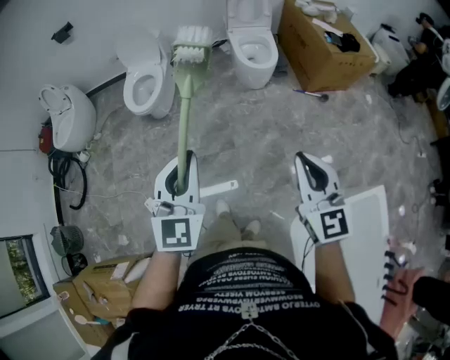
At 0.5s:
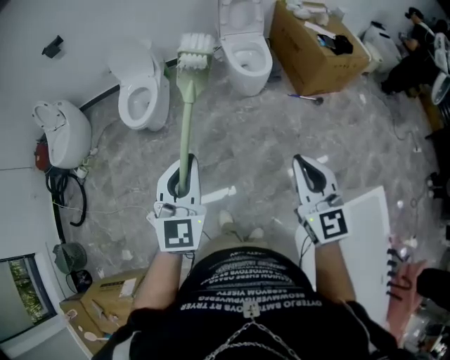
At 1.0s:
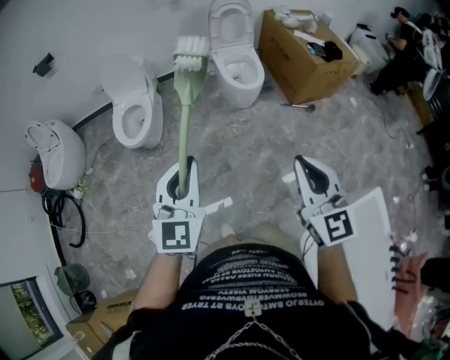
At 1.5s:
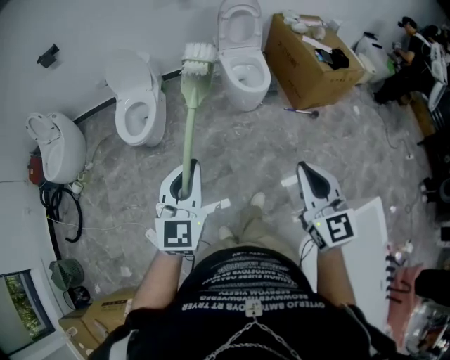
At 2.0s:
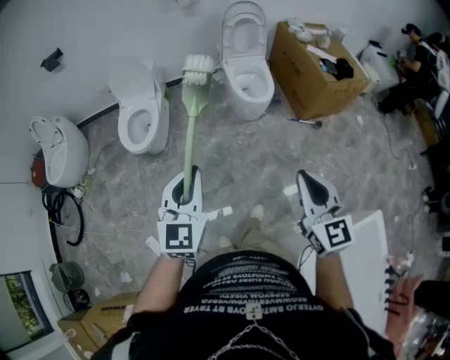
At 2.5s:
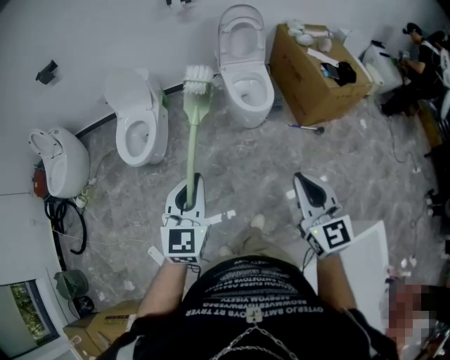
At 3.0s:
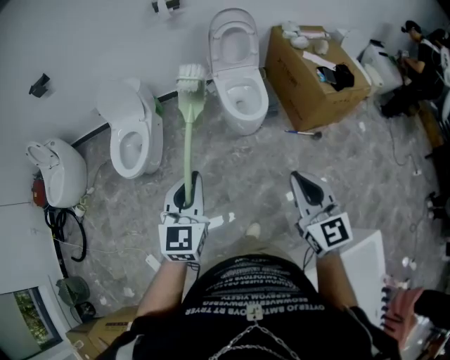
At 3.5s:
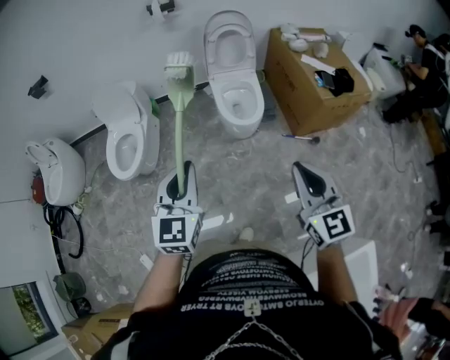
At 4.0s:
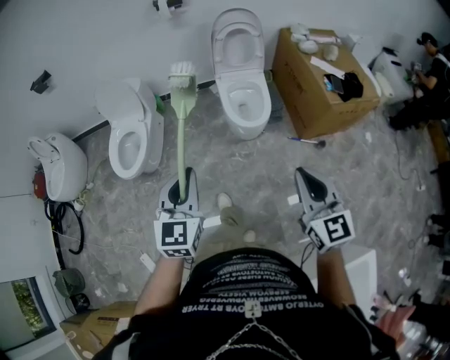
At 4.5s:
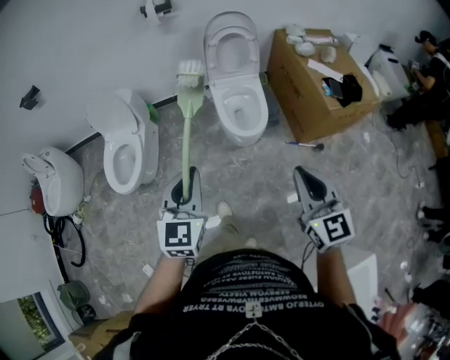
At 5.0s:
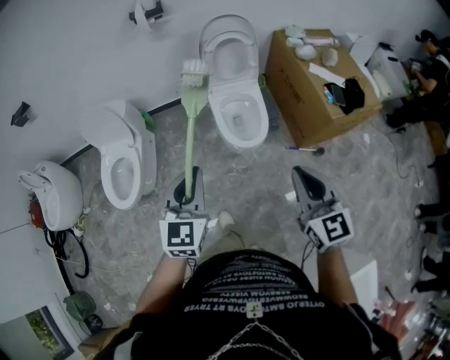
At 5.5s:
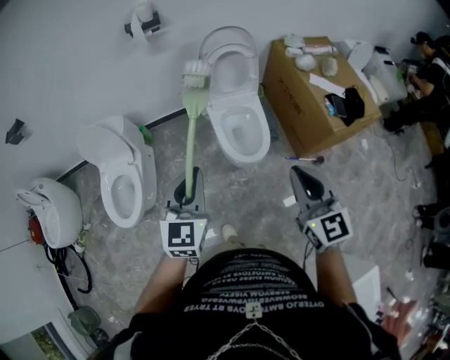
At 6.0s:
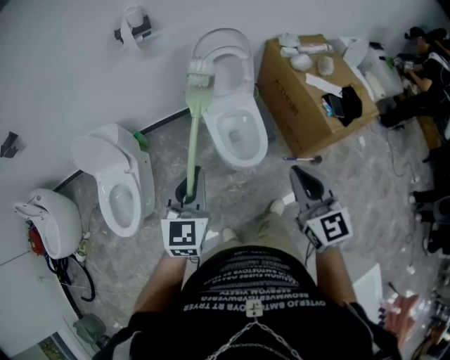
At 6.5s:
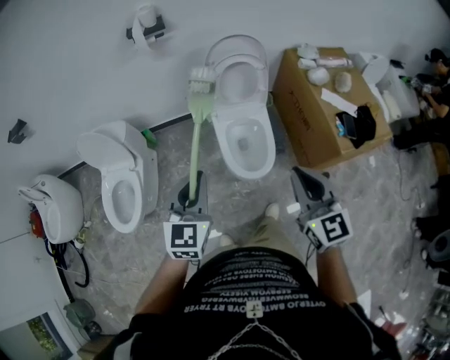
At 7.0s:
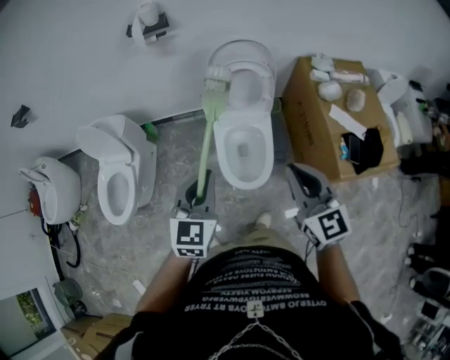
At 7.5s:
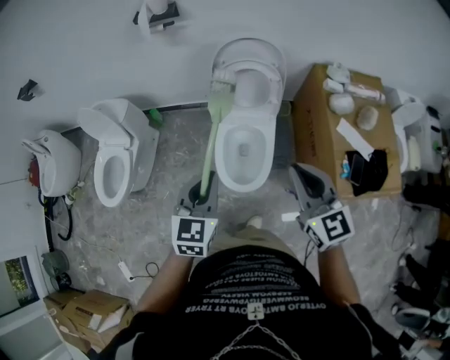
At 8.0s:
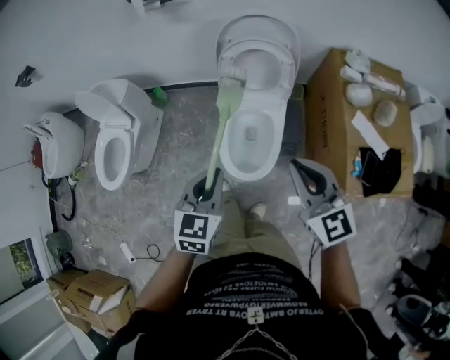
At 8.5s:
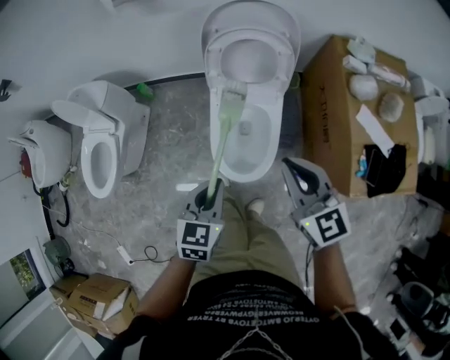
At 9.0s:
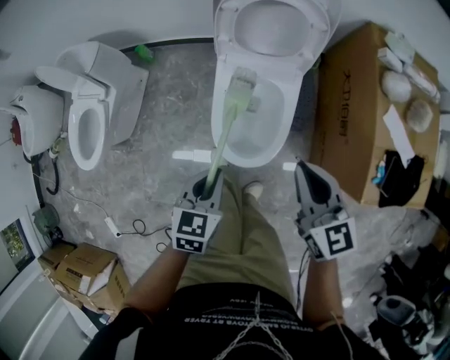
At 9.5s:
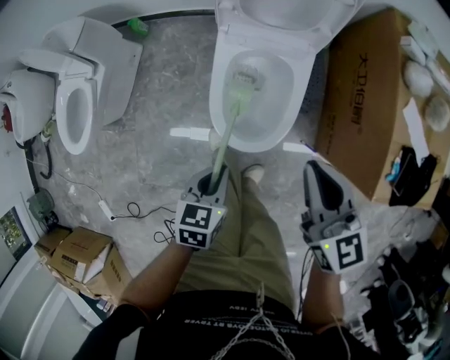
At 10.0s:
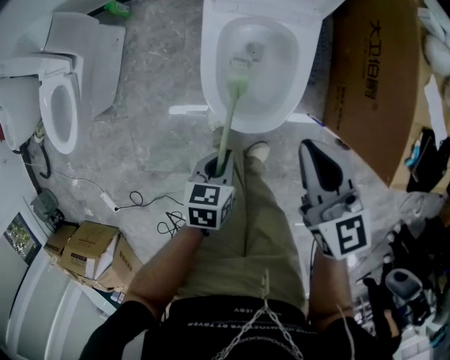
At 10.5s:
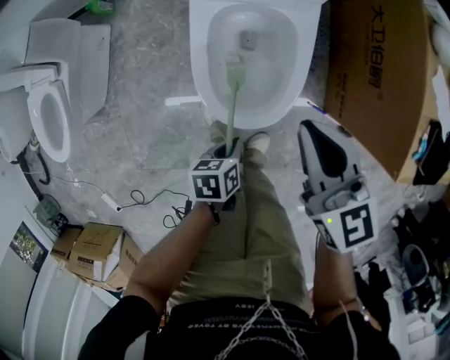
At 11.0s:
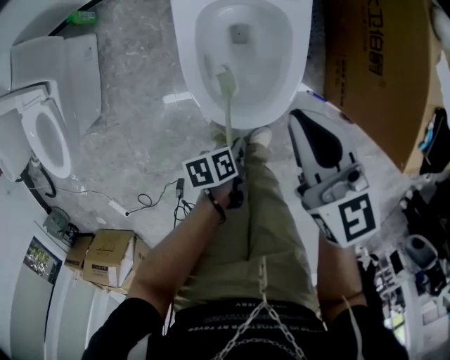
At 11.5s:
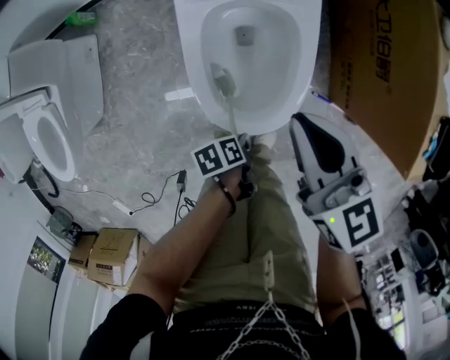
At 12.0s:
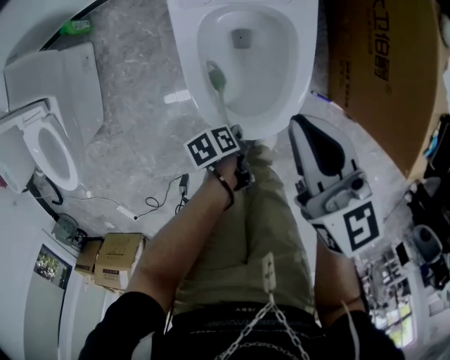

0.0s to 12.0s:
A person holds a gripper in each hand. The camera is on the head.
0.0s to 2.0s: The grippers both shift forward by about 15 cm.
2.0s to 4.0s: The grippers both shift forward and to the right by roughly 30 cm.
4.0s to 6.0s: The grippers both shift forward by about 30 cm.
6.0s to 8.0s: The left gripper heads to the right, forward and downward, covering approximately 25 cm, and rotates roughly 30 degrees, while the right gripper shifts approximately 30 cm forward and to the right, and changes its angle by some 30 degrees.
8.0s to 10.0s: The two grippers go about 35 cm downward. The left gripper swivels roughly 40 degrees. The right gripper swivels some 30 degrees.
10.0s to 12.0s: The left gripper is displaced downward by approximately 15 cm, and rolls counterclockwise, seen from behind, by approximately 40 degrees; the right gripper travels forward, to the left and downward by roughly 10 cm.

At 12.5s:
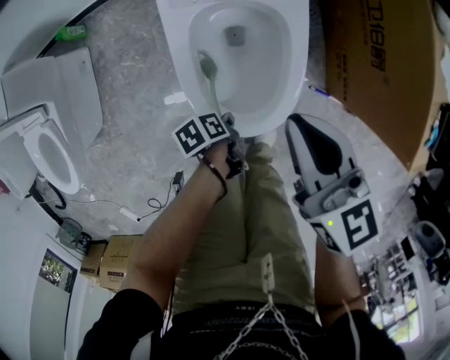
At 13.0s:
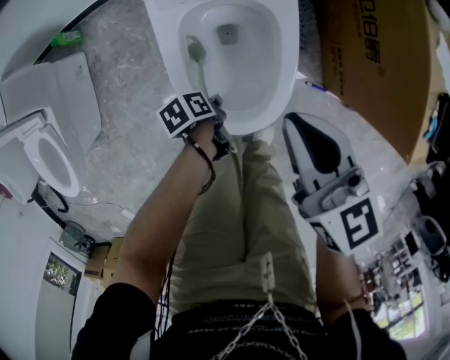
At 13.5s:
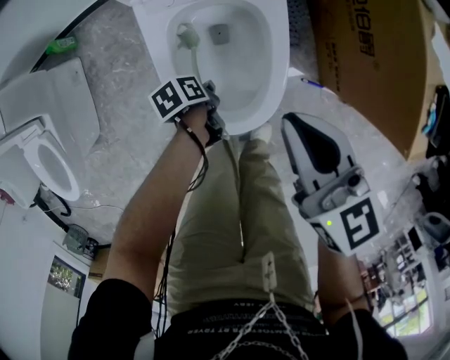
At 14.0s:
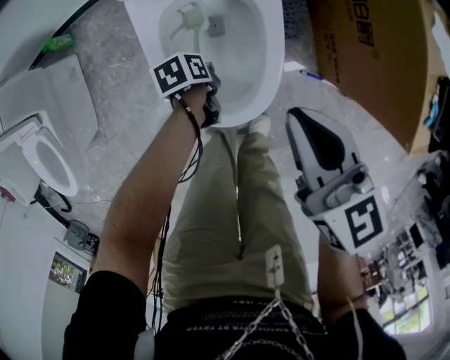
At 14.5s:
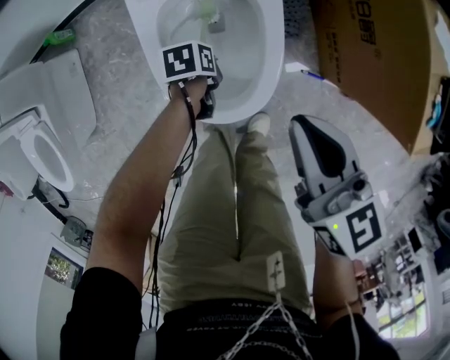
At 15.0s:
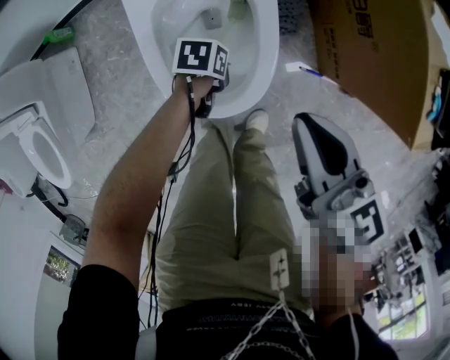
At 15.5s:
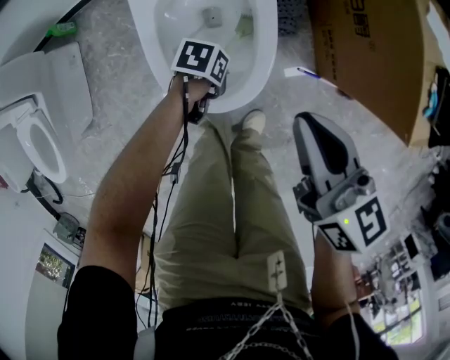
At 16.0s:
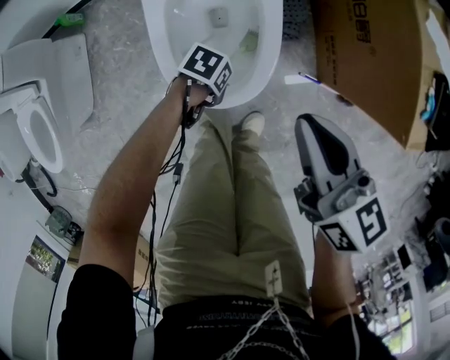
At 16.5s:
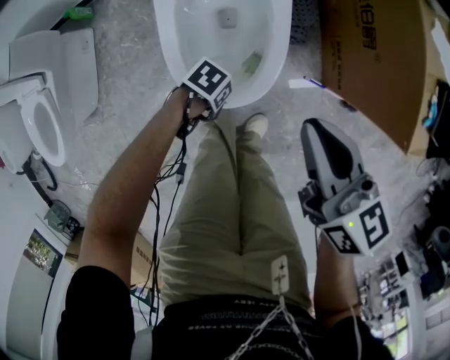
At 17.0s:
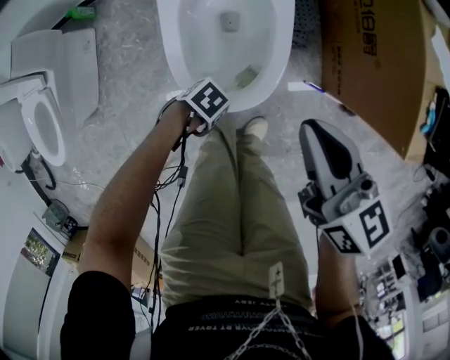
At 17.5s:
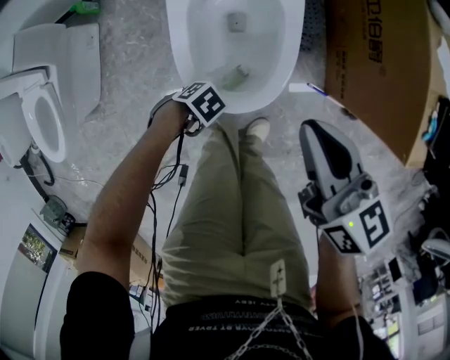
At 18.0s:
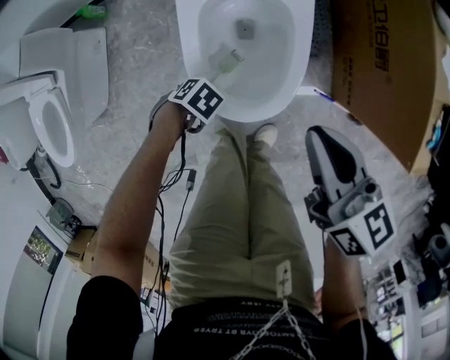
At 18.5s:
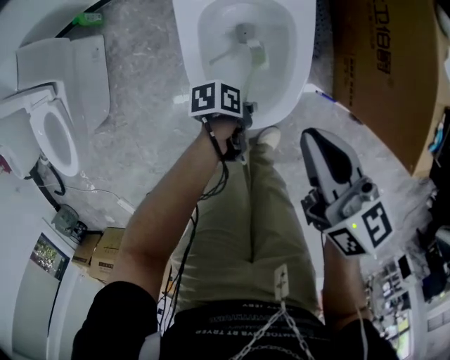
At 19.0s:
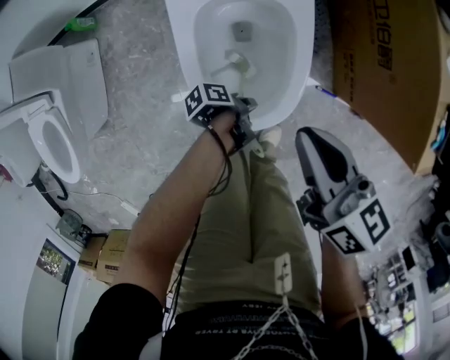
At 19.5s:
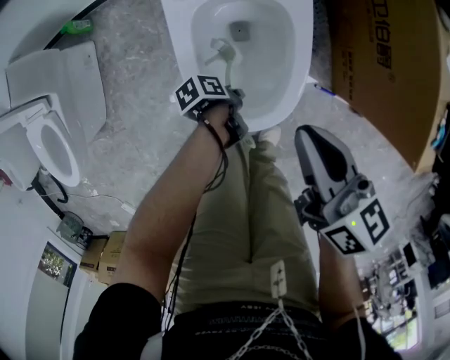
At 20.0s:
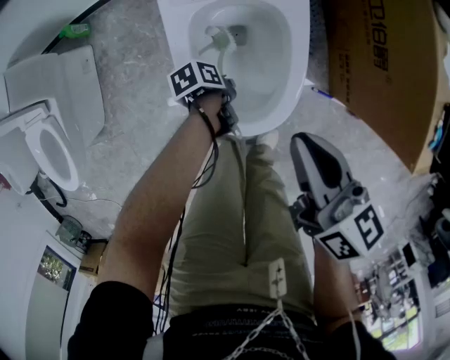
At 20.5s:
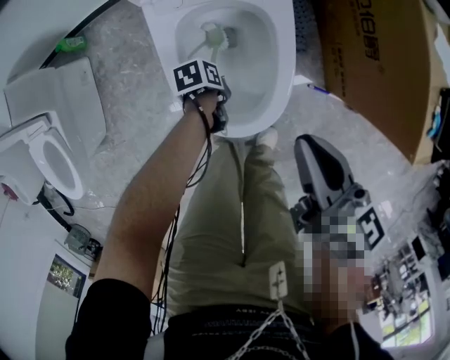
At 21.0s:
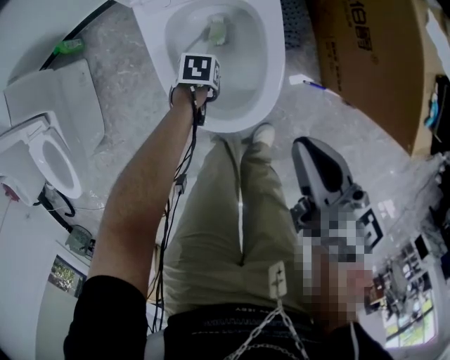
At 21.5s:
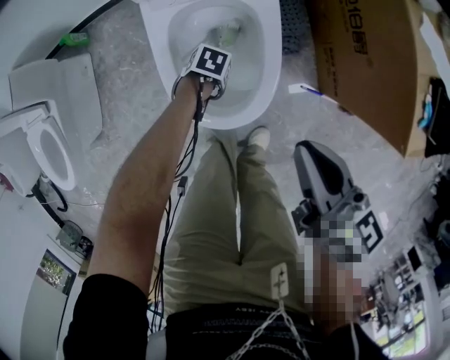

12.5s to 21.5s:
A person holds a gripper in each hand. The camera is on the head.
12.5s to 14.5s: The right gripper shifts approximately 10 cm to the right. The left gripper shifts roughly 10 cm forward, and swivels roughly 30 degrees.
14.5s to 17.0s: The right gripper ends up some 5 cm from where it was. Meanwhile the left gripper ends up roughly 20 cm from where it was, and rotates roughly 50 degrees.
17.0s to 19.5s: The right gripper changes place by some 10 cm, while the left gripper ends up about 10 cm from where it was, and twists roughly 70 degrees counterclockwise, seen from behind.
19.5s to 21.5s: The right gripper changes place by about 10 cm; the left gripper rotates around the line of its fingers by roughly 60 degrees, clockwise from behind.

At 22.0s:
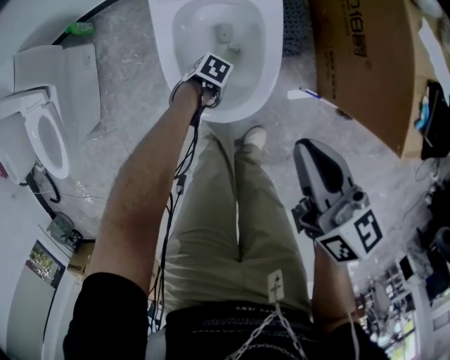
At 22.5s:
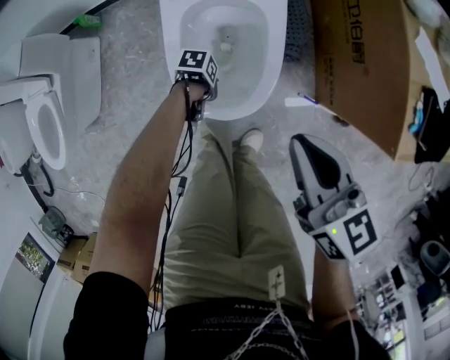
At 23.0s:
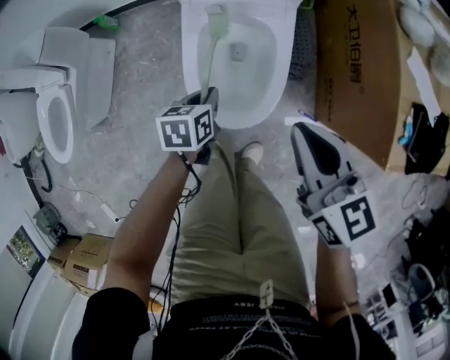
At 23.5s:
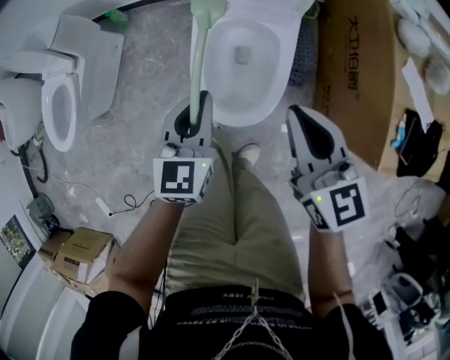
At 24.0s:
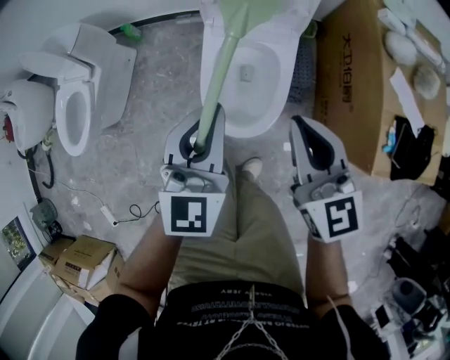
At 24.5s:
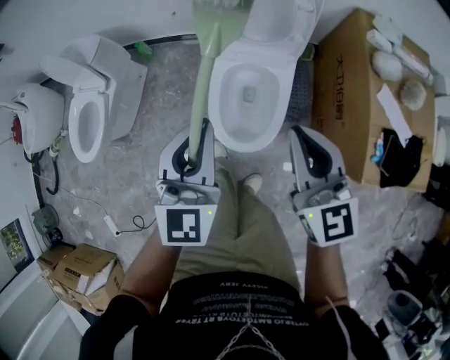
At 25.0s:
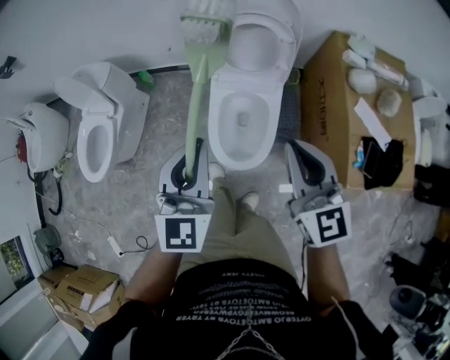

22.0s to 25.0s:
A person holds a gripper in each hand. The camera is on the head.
22.0s to 23.5s: The right gripper shifts approximately 5 cm upward, and rotates about 30 degrees; the left gripper travels upward by roughly 35 cm, and tips its fingers upward by some 40 degrees.
23.5s to 25.0s: The grippers both shift upward by roughly 25 cm.

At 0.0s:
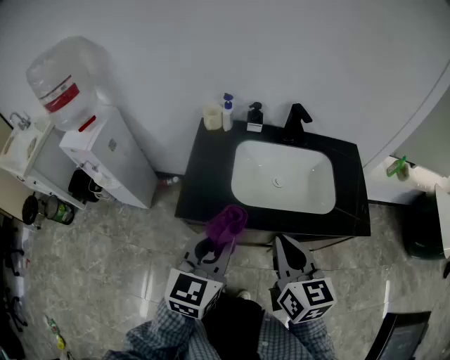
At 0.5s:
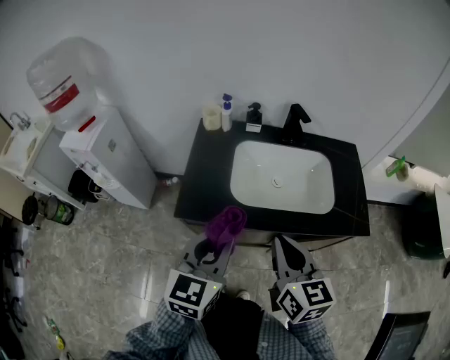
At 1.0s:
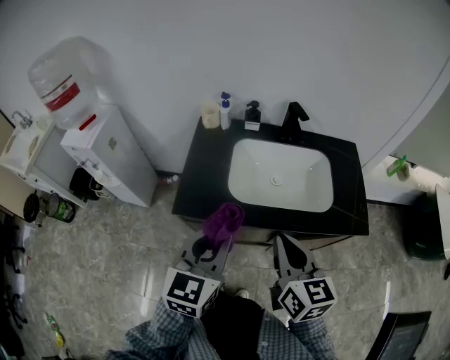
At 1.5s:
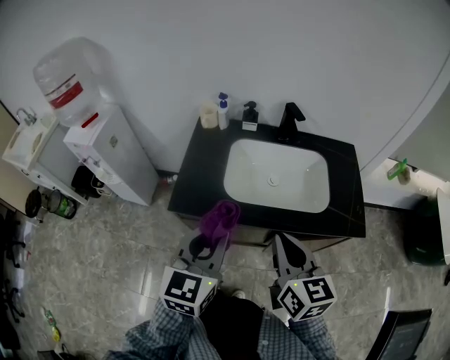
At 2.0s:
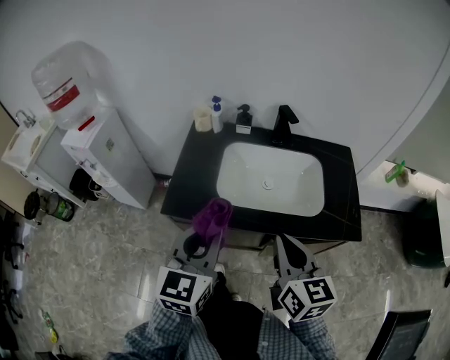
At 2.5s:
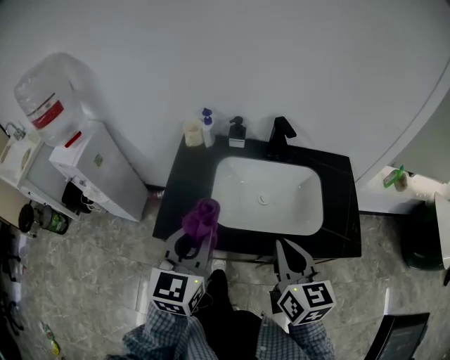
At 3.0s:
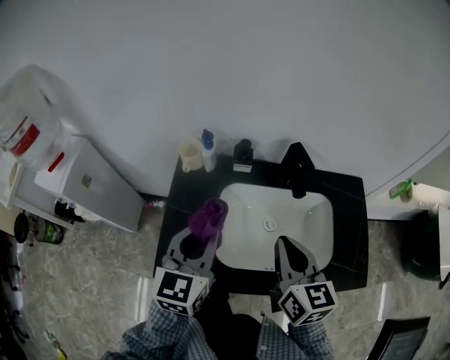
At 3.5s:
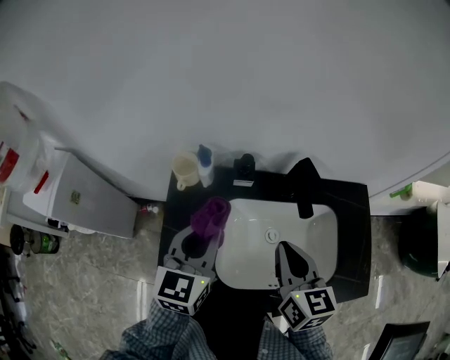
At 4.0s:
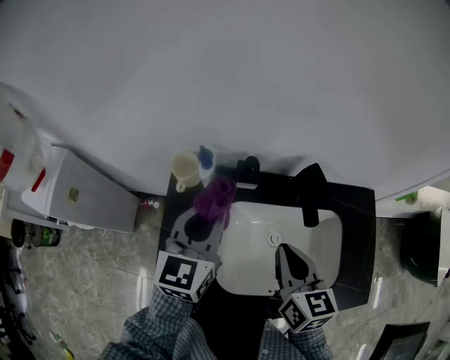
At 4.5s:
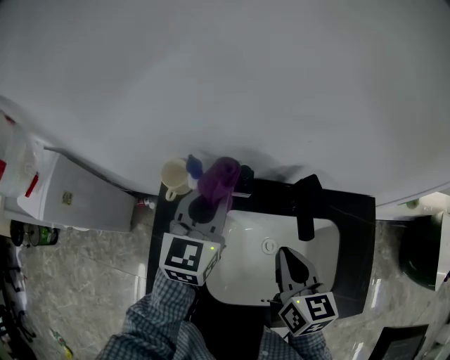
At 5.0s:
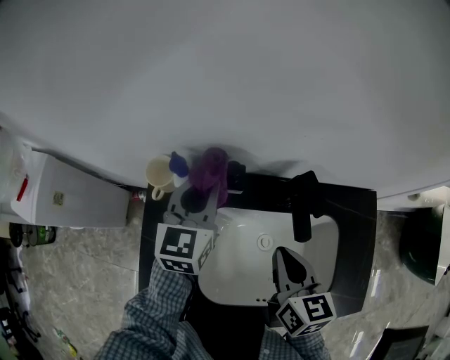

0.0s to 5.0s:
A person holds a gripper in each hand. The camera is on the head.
0.0s to 2.5s: The right gripper shifts roughly 10 cm to the right and forward; the left gripper is displaced forward by about 10 cm.
2.5s to 5.0s: Both grippers move forward, about 35 cm.
